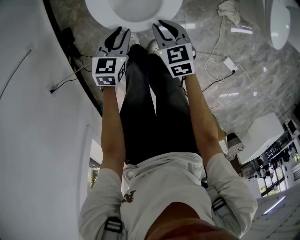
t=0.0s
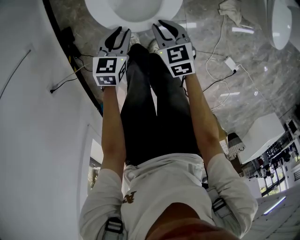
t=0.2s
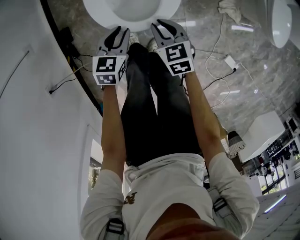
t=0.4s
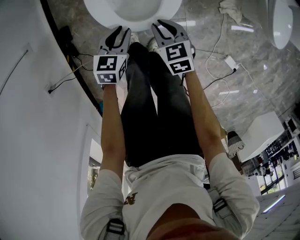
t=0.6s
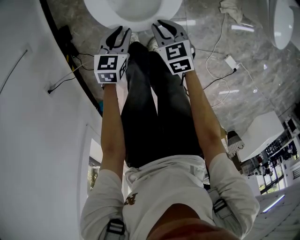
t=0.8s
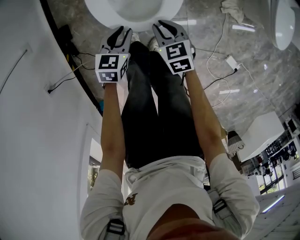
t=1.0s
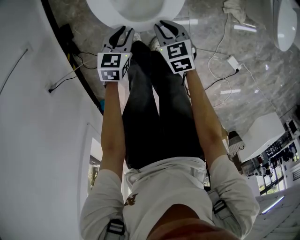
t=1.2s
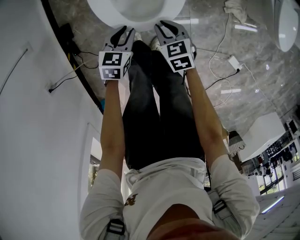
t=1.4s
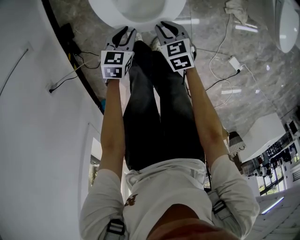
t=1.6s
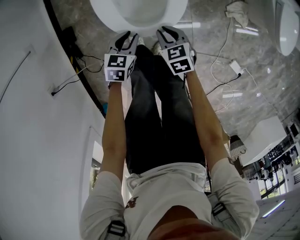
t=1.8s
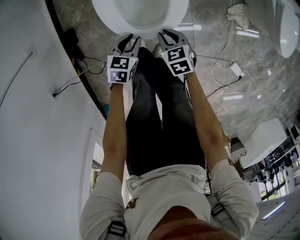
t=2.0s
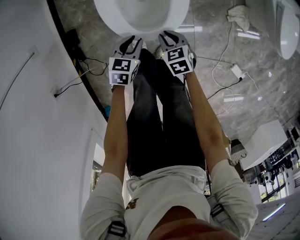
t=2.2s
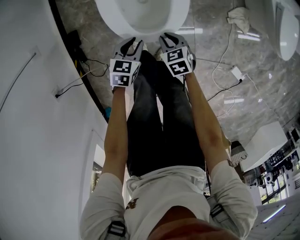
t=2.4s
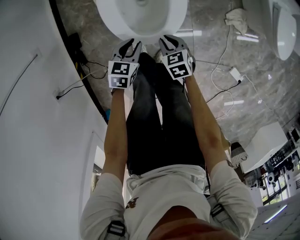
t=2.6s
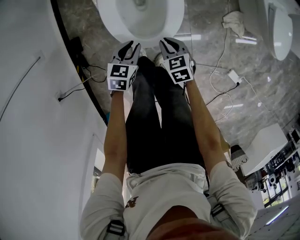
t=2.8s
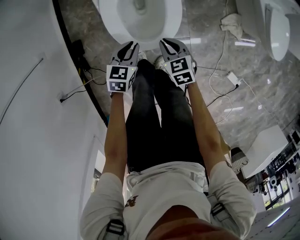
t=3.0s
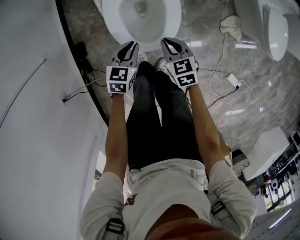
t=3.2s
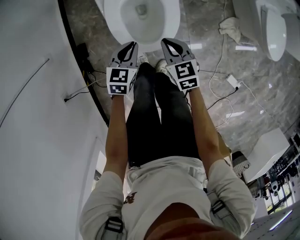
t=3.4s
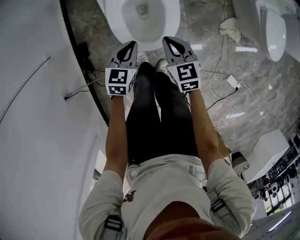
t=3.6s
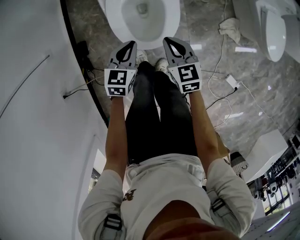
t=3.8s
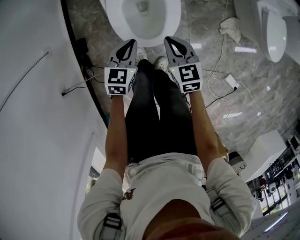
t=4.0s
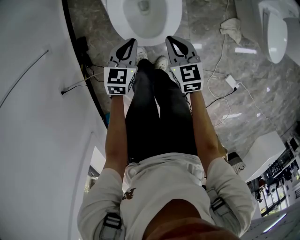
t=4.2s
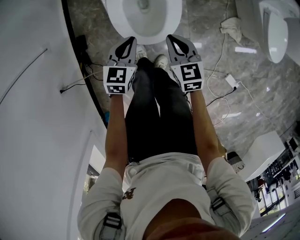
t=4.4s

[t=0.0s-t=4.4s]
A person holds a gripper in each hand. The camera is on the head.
t=0.0s to t=1.4s: Both grippers move downward, some 10 cm.
t=1.4s to t=3.0s: The left gripper shifts roughly 5 cm upward; the right gripper changes place by about 5 cm.
t=3.0s to t=4.4s: The grippers both shift upward by about 10 cm.

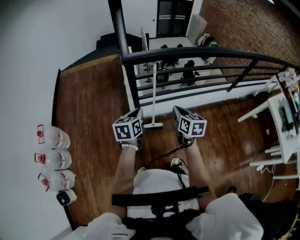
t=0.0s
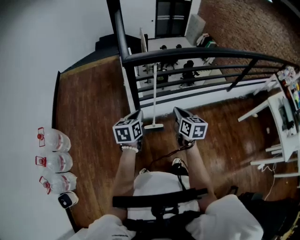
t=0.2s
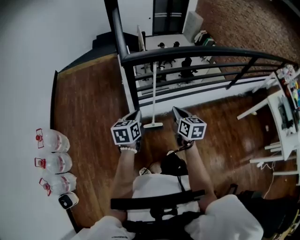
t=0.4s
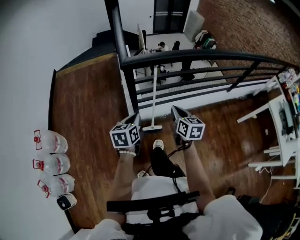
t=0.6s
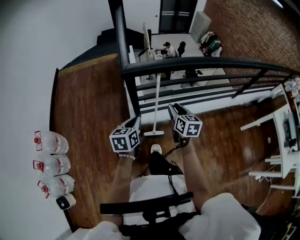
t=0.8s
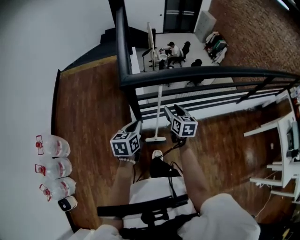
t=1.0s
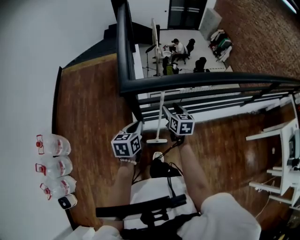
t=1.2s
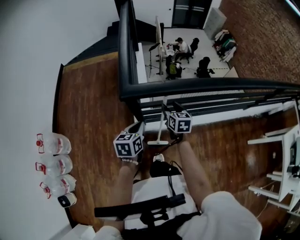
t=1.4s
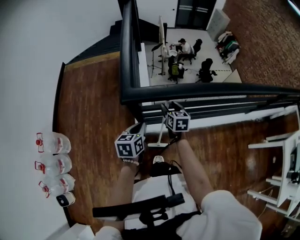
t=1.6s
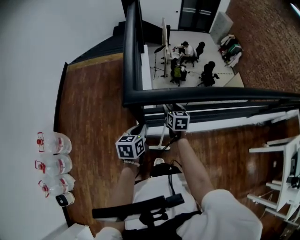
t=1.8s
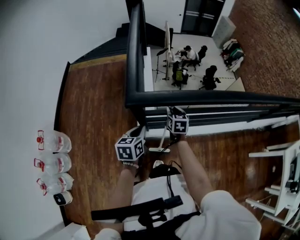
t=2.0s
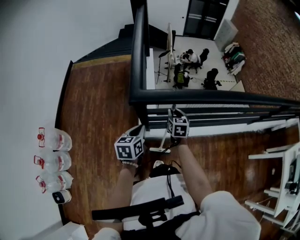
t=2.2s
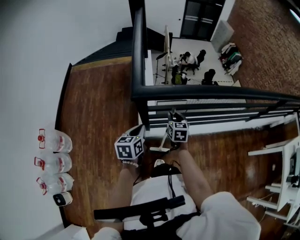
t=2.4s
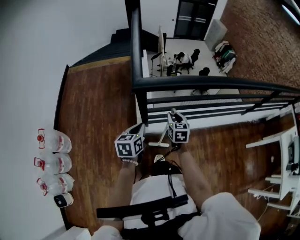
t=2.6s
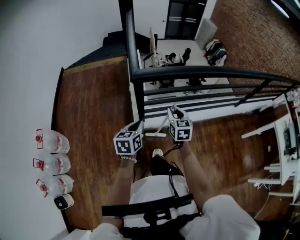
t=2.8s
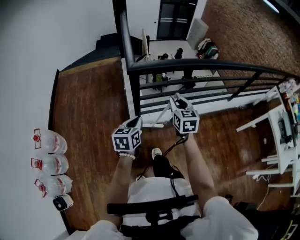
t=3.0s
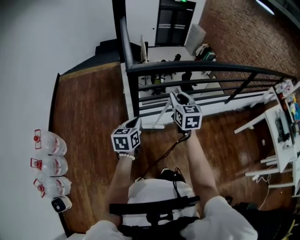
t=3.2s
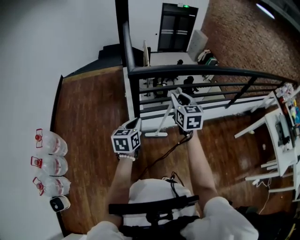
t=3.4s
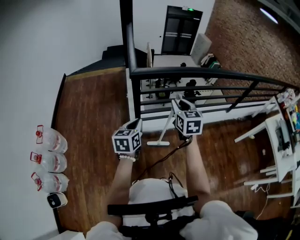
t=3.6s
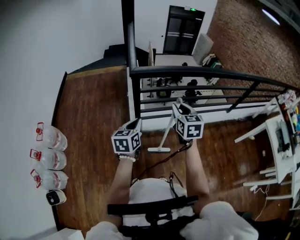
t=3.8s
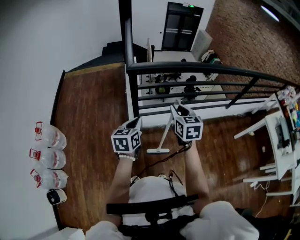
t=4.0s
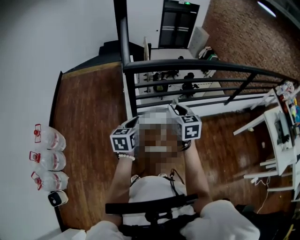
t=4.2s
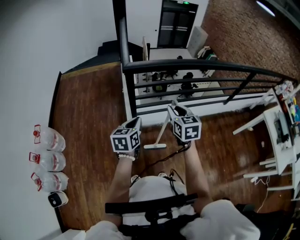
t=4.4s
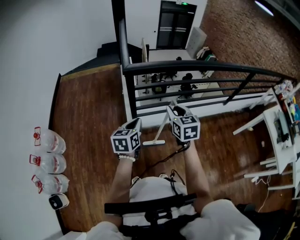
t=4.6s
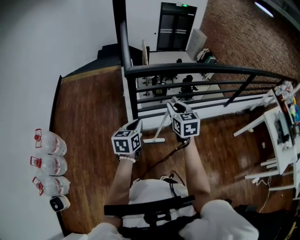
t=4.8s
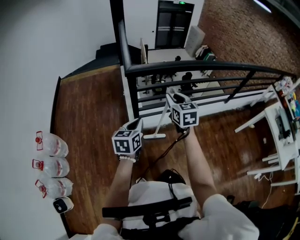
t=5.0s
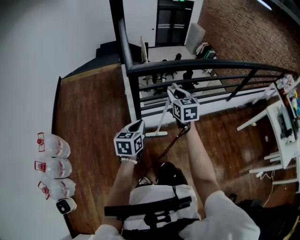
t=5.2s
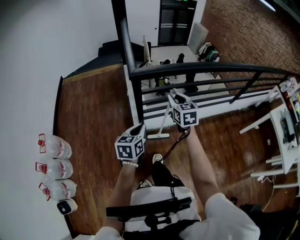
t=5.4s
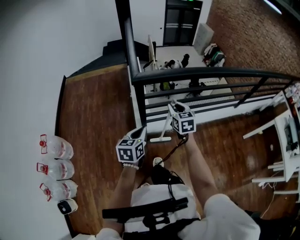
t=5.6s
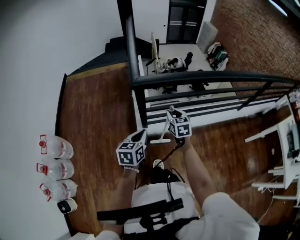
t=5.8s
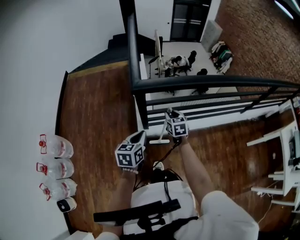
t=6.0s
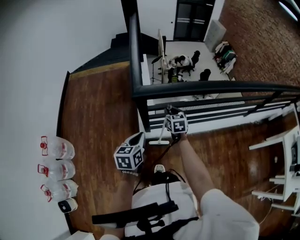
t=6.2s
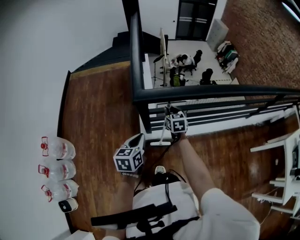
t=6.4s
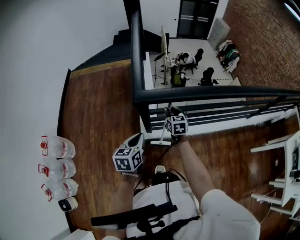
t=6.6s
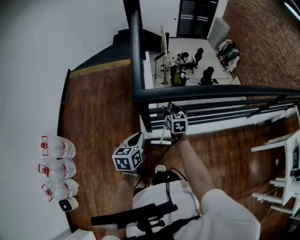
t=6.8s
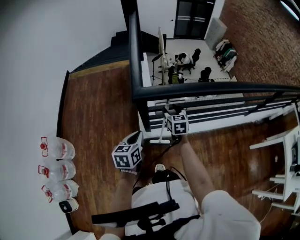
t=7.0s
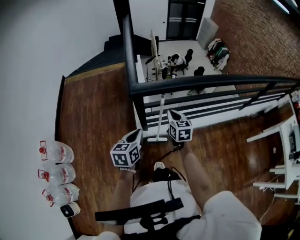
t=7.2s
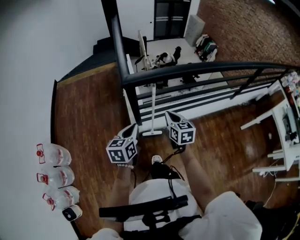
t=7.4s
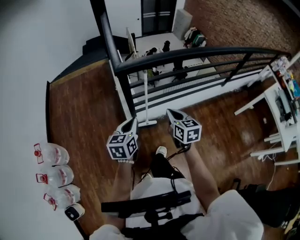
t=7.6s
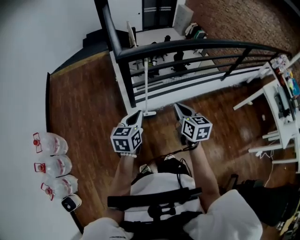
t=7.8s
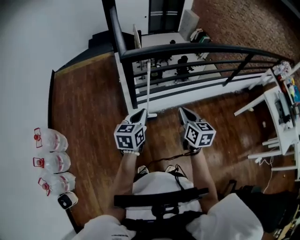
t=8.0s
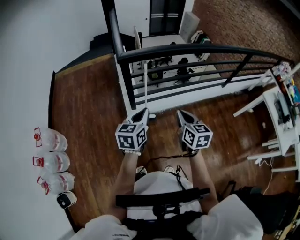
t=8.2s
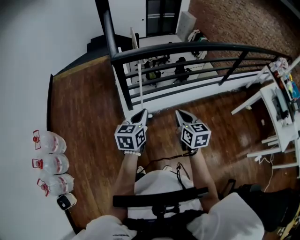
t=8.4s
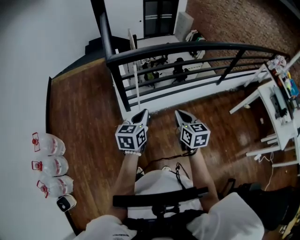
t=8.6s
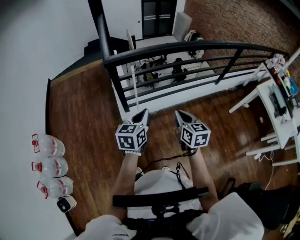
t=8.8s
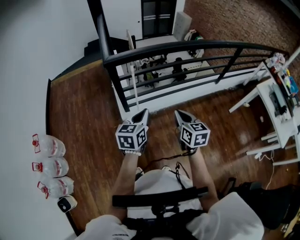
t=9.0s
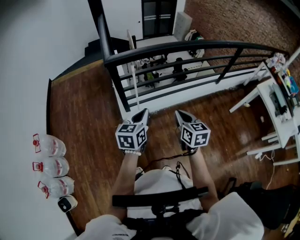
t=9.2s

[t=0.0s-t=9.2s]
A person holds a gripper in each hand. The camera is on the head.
t=0.0s to t=1.6s: The two grippers go roughly 35 cm forward. The right gripper opens.
t=1.6s to t=3.0s: The left gripper heads backward, covering some 25 cm. Meanwhile the right gripper is displaced backward and upward by approximately 30 cm, swivels approximately 20 degrees, and closes its fingers.
t=3.0s to t=4.6s: The right gripper heads backward, covering approximately 10 cm. Meanwhile the left gripper shifts roughly 5 cm backward.
t=4.6s to t=6.2s: The left gripper shifts roughly 20 cm forward; the right gripper goes about 40 cm forward and downward.
t=6.2s to t=7.6s: The left gripper shifts about 15 cm backward; the right gripper travels backward and upward by some 30 cm, and closes its fingers.
t=7.6s to t=9.2s: The grippers both shift to the right and backward by roughly 20 cm.

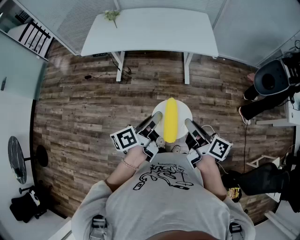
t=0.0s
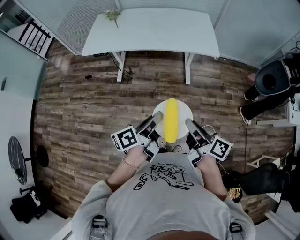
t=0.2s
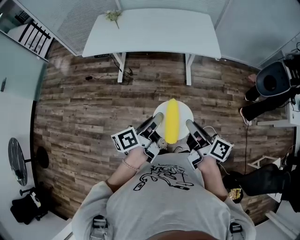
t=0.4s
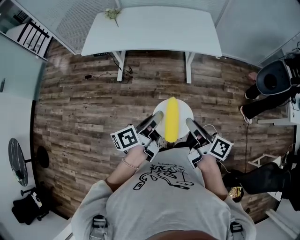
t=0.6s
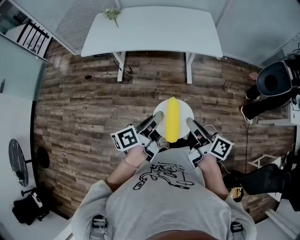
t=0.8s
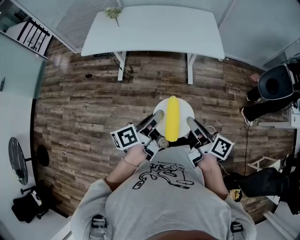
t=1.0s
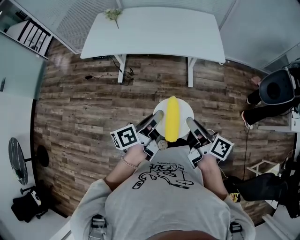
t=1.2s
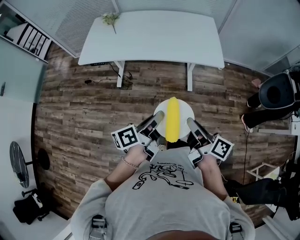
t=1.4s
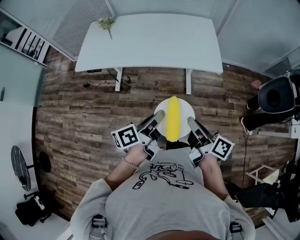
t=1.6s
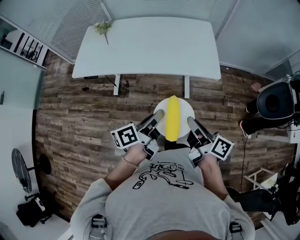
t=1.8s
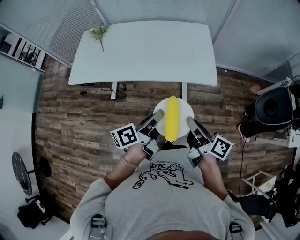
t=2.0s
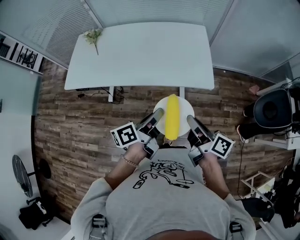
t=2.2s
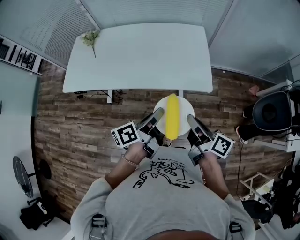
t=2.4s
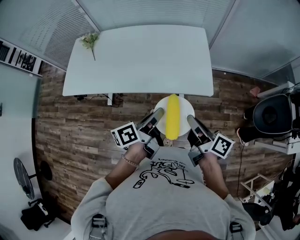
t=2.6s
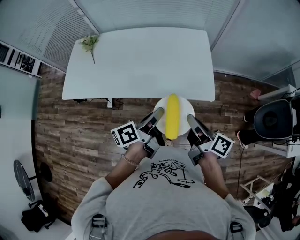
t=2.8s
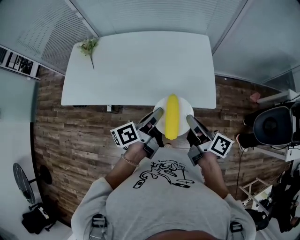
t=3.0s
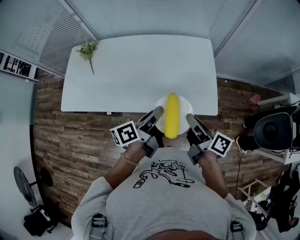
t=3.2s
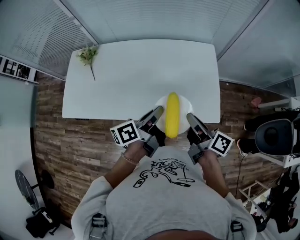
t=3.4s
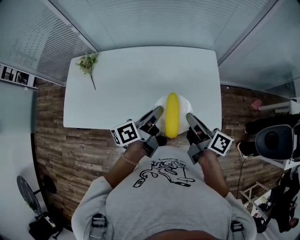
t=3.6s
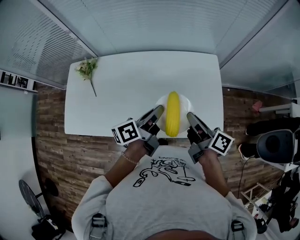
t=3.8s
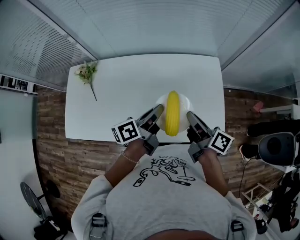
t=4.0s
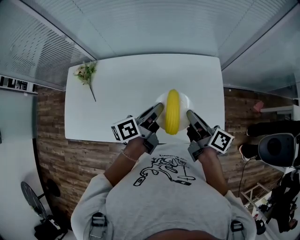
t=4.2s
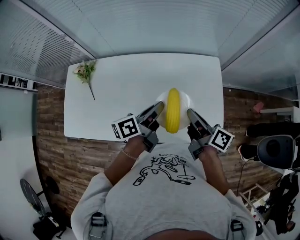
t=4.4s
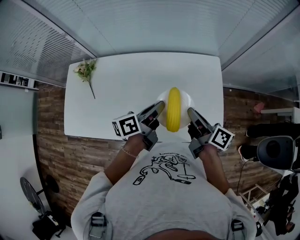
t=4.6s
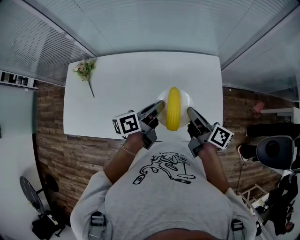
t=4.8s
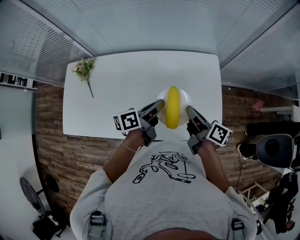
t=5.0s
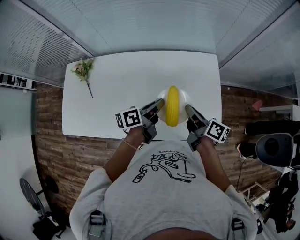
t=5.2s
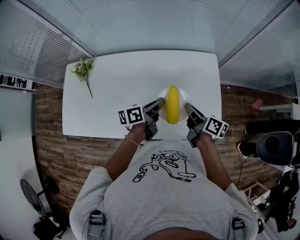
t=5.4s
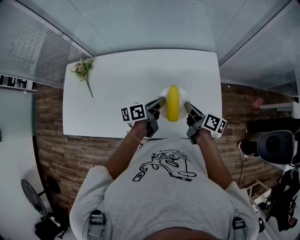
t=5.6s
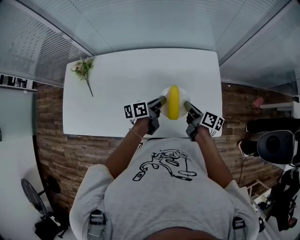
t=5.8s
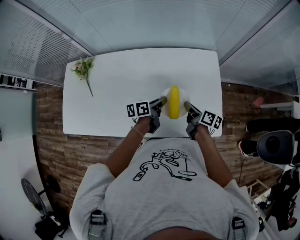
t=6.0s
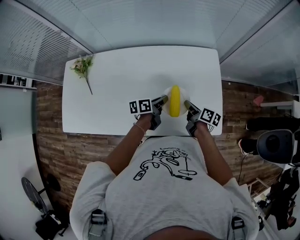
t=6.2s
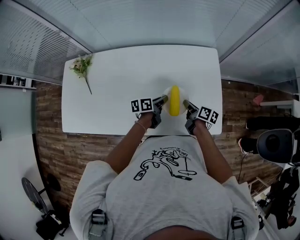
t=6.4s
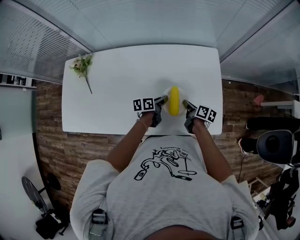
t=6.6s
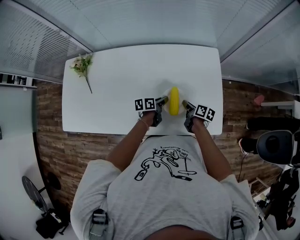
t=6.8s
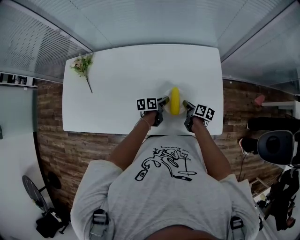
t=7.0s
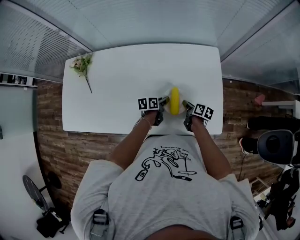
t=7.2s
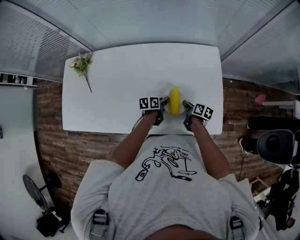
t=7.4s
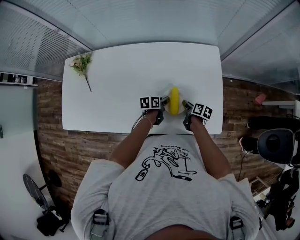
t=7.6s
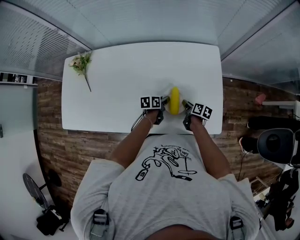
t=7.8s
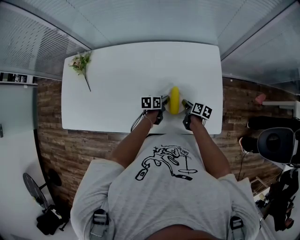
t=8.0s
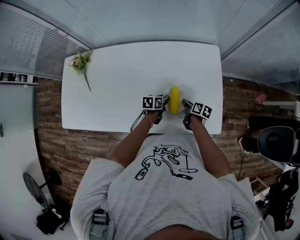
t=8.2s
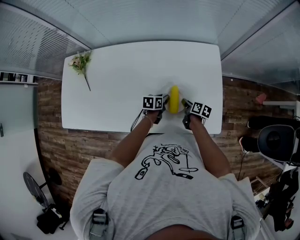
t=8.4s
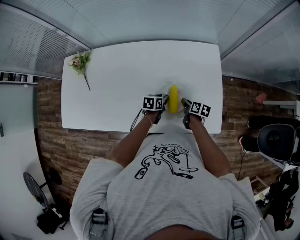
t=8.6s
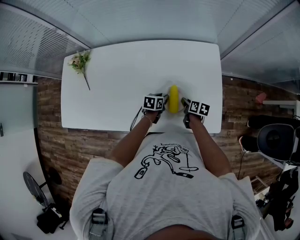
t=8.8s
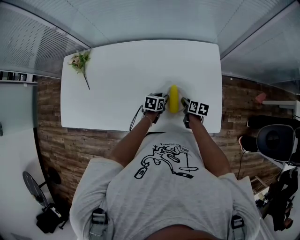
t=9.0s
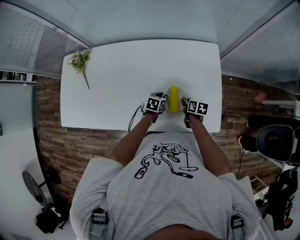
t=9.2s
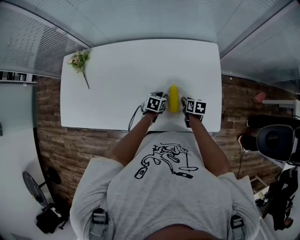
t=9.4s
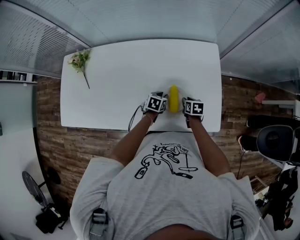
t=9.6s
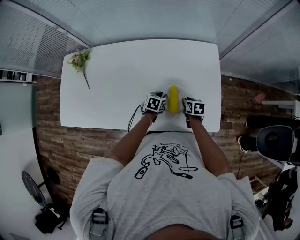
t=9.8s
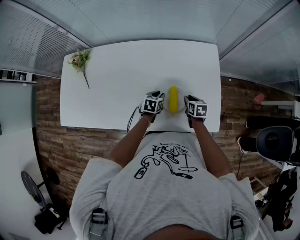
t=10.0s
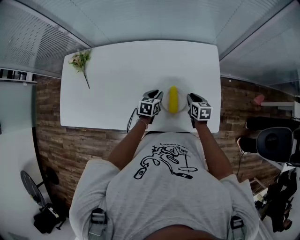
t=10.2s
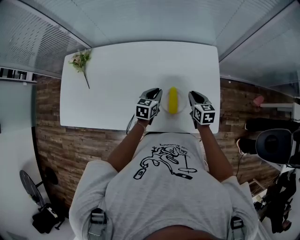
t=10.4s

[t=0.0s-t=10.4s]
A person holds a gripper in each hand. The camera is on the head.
t=0.0s to t=1.4s: Both grippers travel together forward, approximately 15 cm.
t=1.4s to t=3.0s: The two grippers go about 35 cm forward.
t=3.0s to t=4.4s: Both grippers move forward, approximately 25 cm.
t=4.4s to t=6.0s: Both grippers move downward, approximately 15 cm.
t=6.0s to t=7.4s: The grippers both shift downward by roughly 15 cm.
t=7.4s to t=9.0s: The left gripper rotates approximately 30 degrees.
t=9.0s to t=10.4s: Both grippers travel together upward, some 10 cm. The left gripper changes its angle by approximately 20 degrees. The right gripper rotates roughly 30 degrees.
